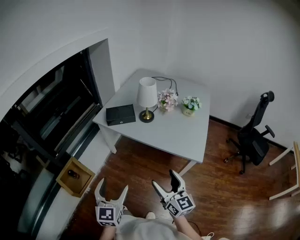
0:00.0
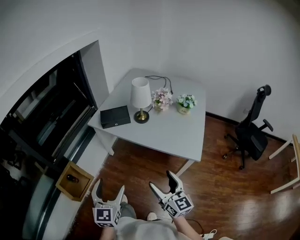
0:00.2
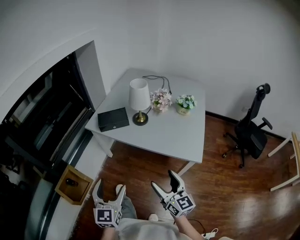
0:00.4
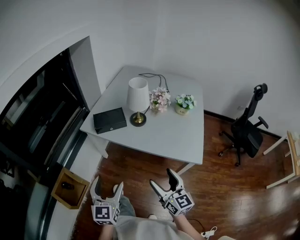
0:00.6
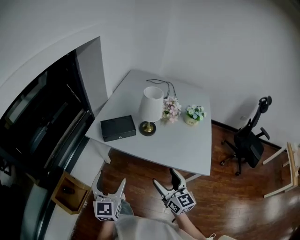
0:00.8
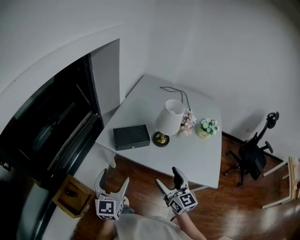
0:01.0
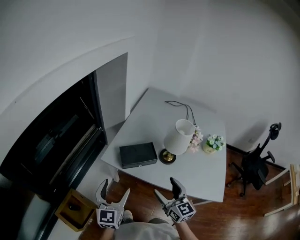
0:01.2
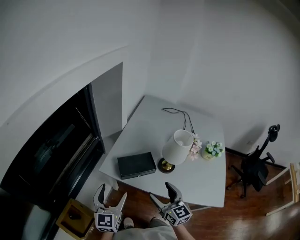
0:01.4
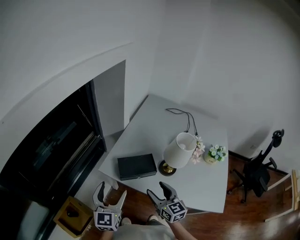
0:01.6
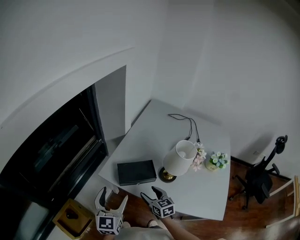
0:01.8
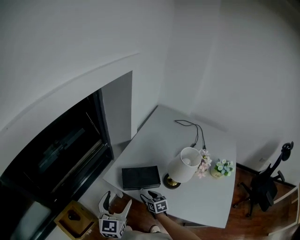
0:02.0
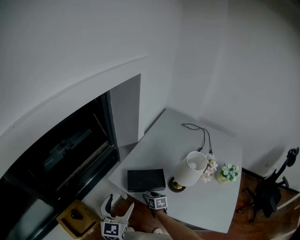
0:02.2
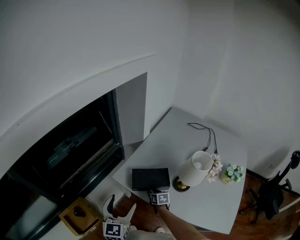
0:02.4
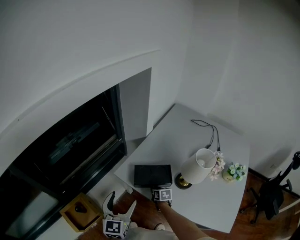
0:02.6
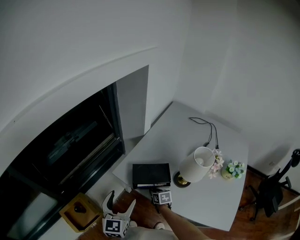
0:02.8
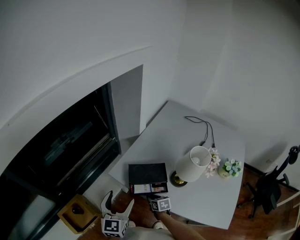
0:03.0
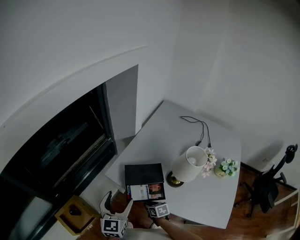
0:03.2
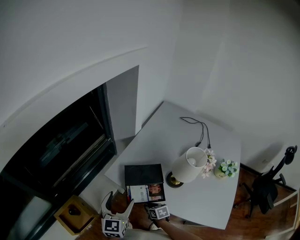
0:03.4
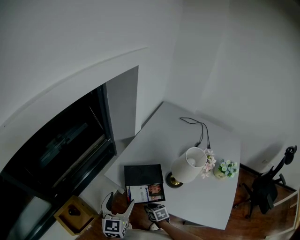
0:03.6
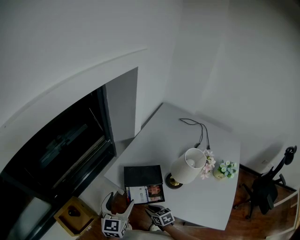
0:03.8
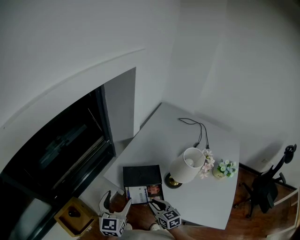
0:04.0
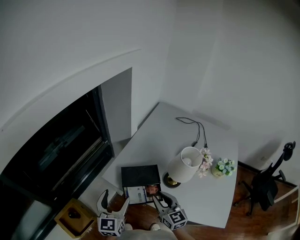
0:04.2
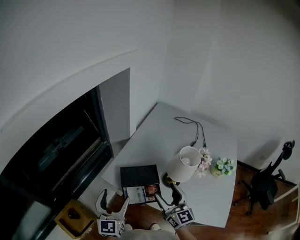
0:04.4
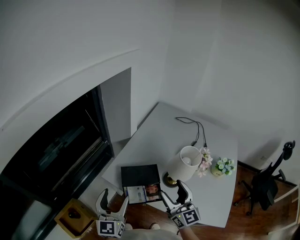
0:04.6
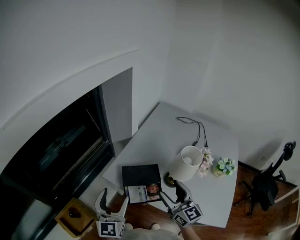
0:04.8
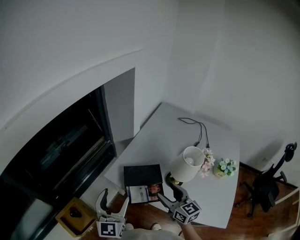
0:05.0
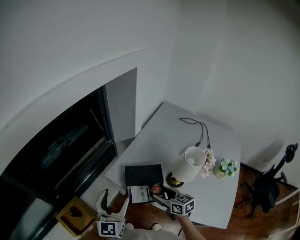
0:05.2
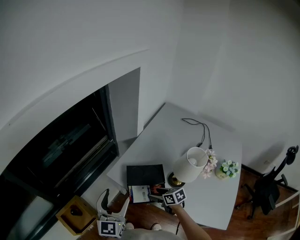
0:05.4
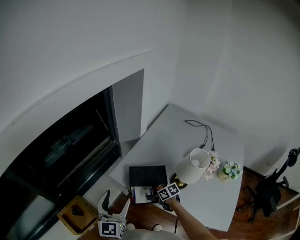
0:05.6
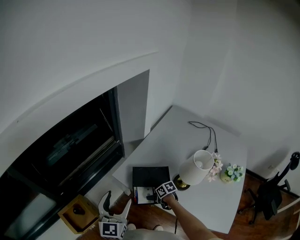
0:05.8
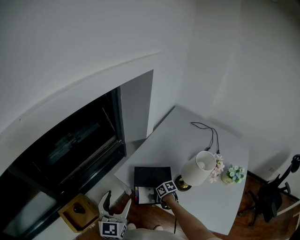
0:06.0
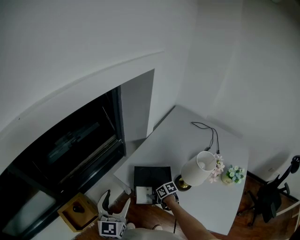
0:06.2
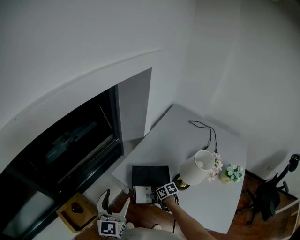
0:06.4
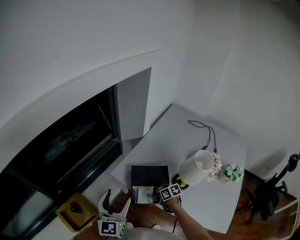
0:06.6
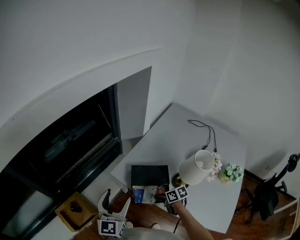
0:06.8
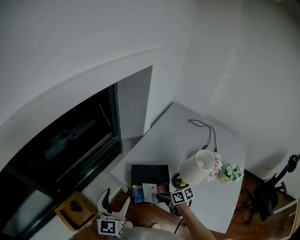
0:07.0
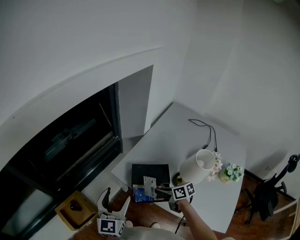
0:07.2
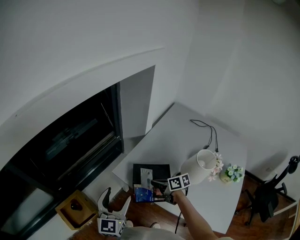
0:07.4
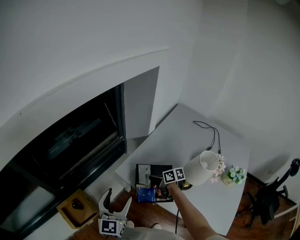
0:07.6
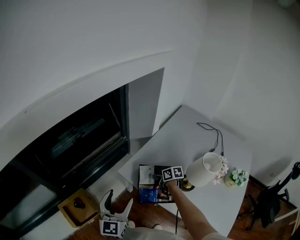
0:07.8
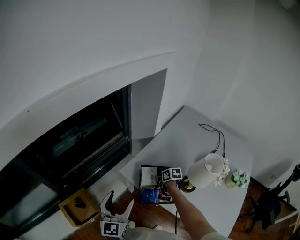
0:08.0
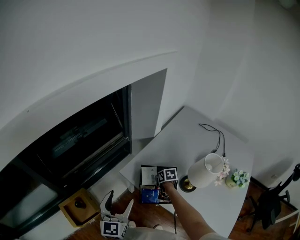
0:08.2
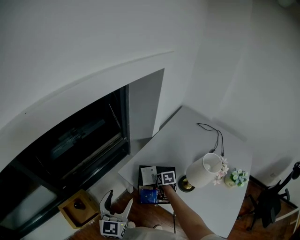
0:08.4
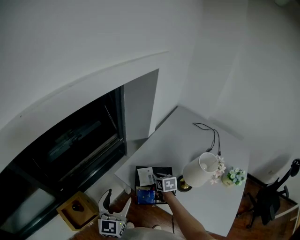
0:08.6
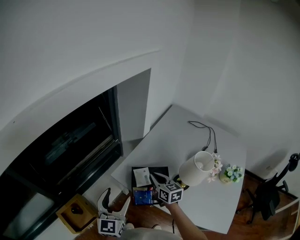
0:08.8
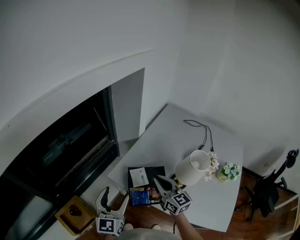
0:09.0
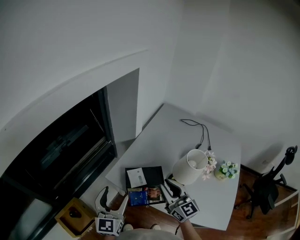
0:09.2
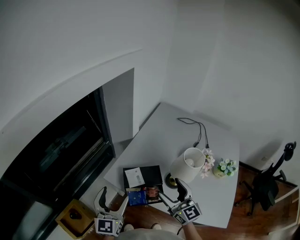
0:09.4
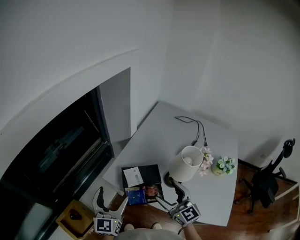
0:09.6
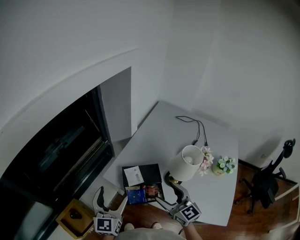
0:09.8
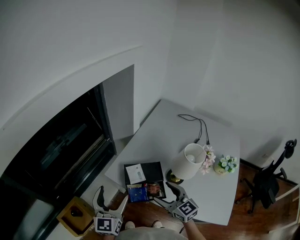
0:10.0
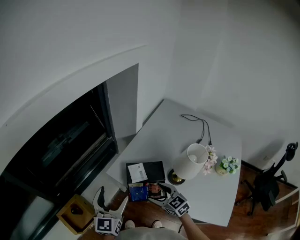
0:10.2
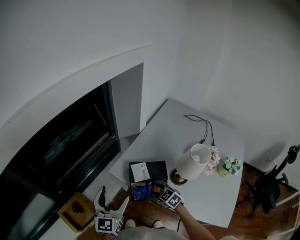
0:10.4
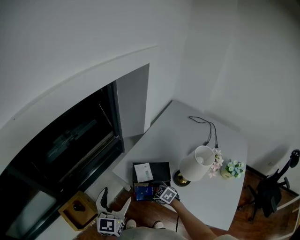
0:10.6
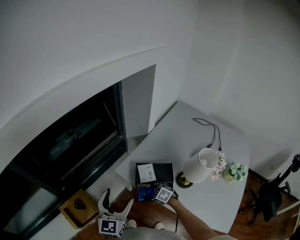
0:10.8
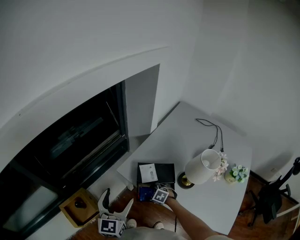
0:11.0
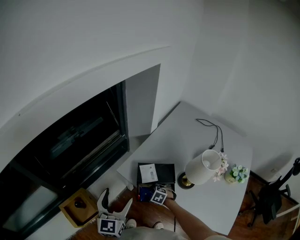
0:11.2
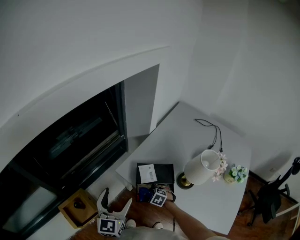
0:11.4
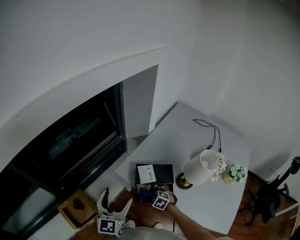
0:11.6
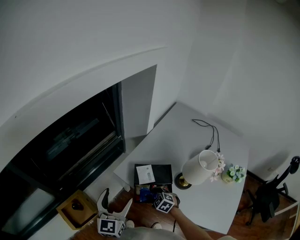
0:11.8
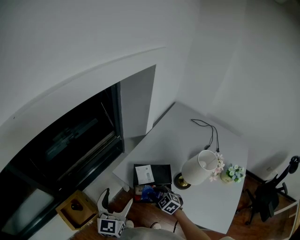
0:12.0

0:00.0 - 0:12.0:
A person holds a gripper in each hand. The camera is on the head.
0:00.0 - 0:01.6: Both grippers are carried forward, about 40 cm.
0:01.6 - 0:03.0: The right gripper goes some 25 cm downward, angles its fingers downward, by roughly 40 degrees, and closes.
0:03.0 - 0:04.4: The right gripper is displaced upward by roughly 30 cm, points its fingers about 50 degrees further upward, and opens up.
0:04.4 - 0:06.0: The right gripper goes approximately 30 cm downward, tilts its fingers some 50 degrees downward, and closes up. The left gripper moves some 5 cm.
0:06.0 - 0:07.6: The right gripper shifts approximately 15 cm upward and forward, turns by some 20 degrees, and closes.
0:07.6 - 0:09.0: The right gripper travels upward by about 15 cm, and angles its fingers upward, by some 30 degrees.
0:09.0 - 0:10.4: The right gripper moves downward, roughly 20 cm, tips its fingers downward by approximately 40 degrees, and opens.
0:10.4 - 0:12.0: The right gripper moves roughly 15 cm downward and comes back, and closes up.

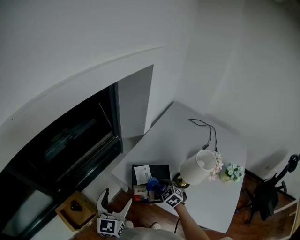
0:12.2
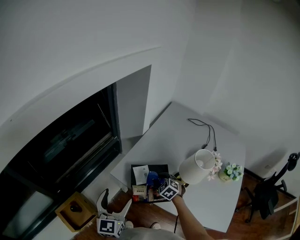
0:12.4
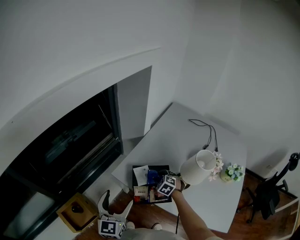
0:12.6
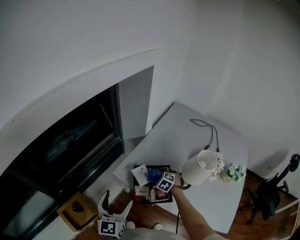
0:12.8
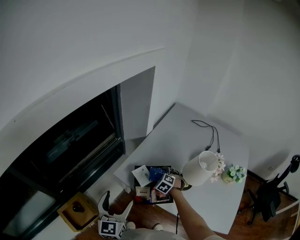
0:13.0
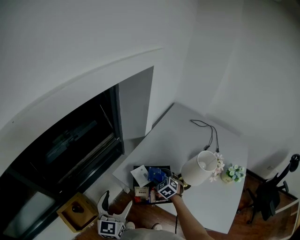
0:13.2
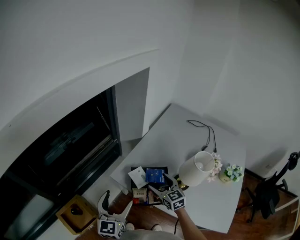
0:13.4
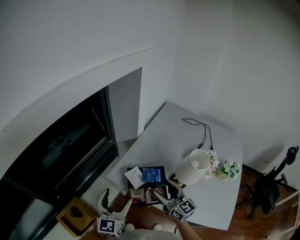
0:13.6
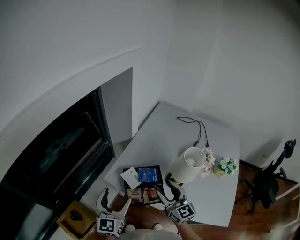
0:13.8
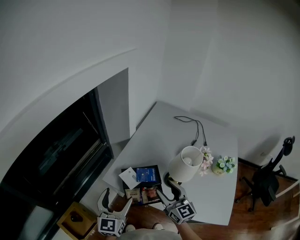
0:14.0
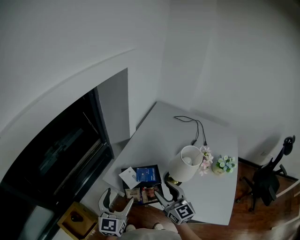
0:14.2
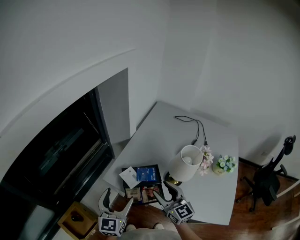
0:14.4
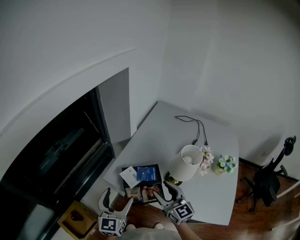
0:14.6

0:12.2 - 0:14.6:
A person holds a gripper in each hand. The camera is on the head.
0:12.2 - 0:13.4: The right gripper is displaced upward by approximately 10 cm, rotates roughly 40 degrees, and opens up.
0:13.4 - 0:14.6: The right gripper is displaced upward and backward by some 10 cm.

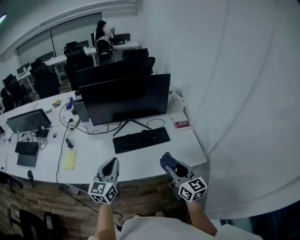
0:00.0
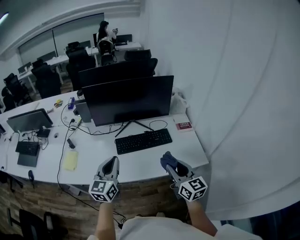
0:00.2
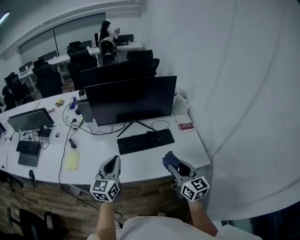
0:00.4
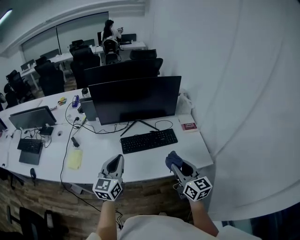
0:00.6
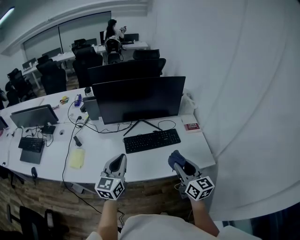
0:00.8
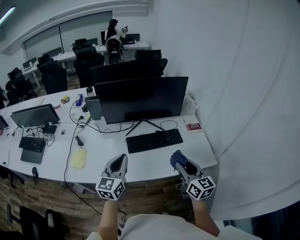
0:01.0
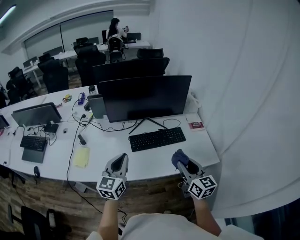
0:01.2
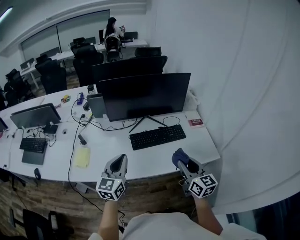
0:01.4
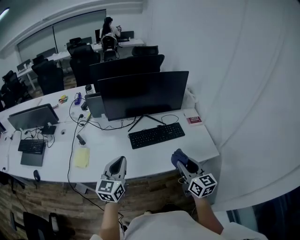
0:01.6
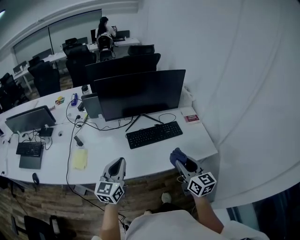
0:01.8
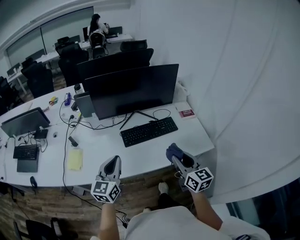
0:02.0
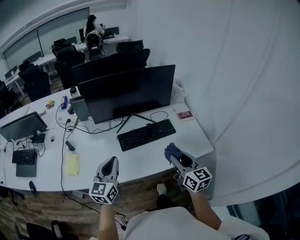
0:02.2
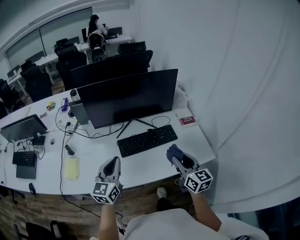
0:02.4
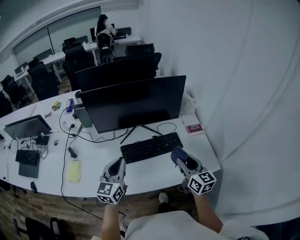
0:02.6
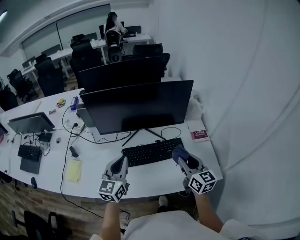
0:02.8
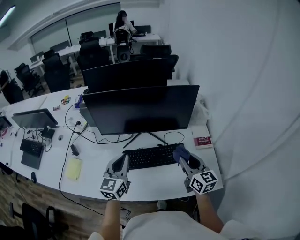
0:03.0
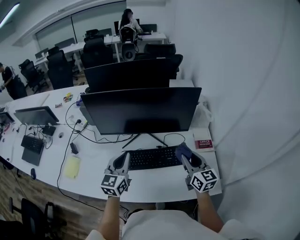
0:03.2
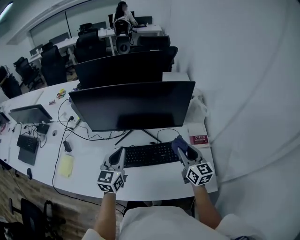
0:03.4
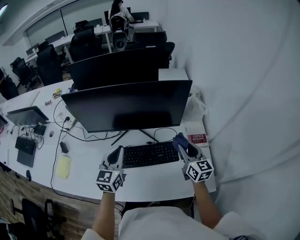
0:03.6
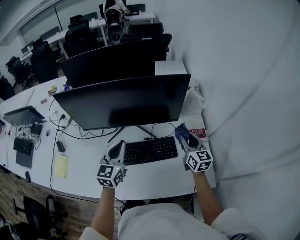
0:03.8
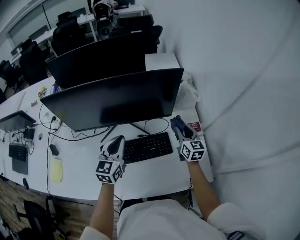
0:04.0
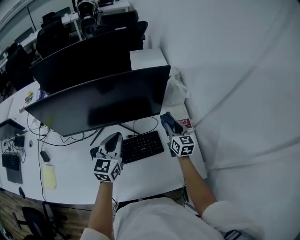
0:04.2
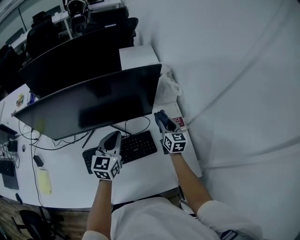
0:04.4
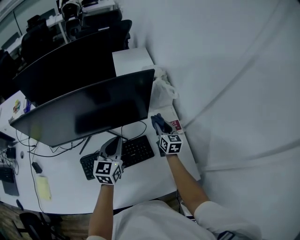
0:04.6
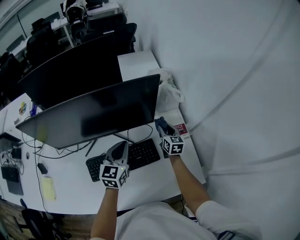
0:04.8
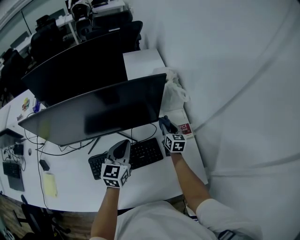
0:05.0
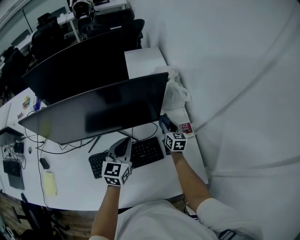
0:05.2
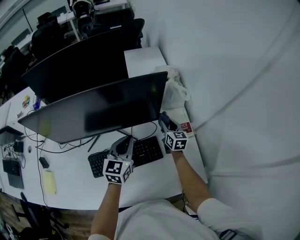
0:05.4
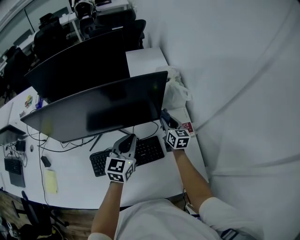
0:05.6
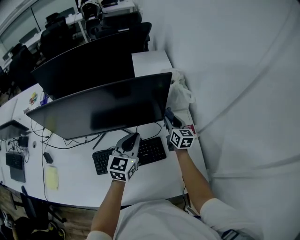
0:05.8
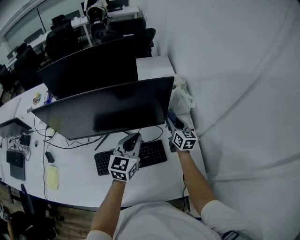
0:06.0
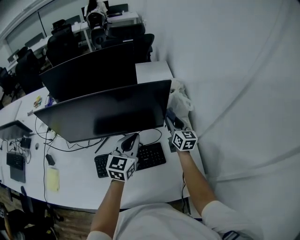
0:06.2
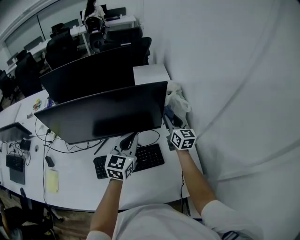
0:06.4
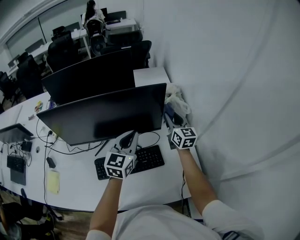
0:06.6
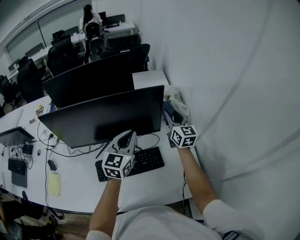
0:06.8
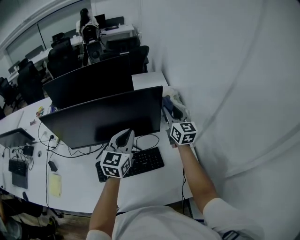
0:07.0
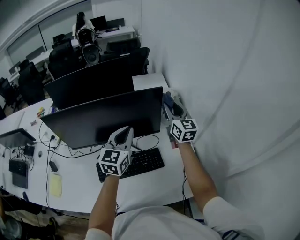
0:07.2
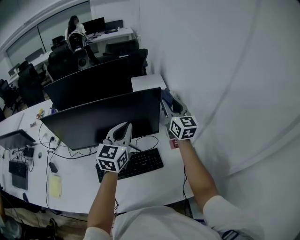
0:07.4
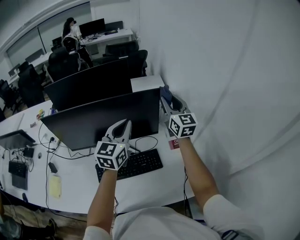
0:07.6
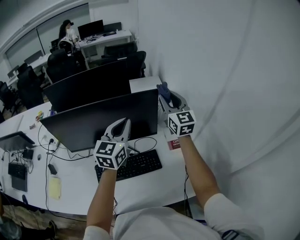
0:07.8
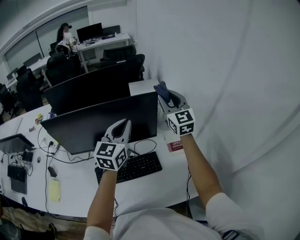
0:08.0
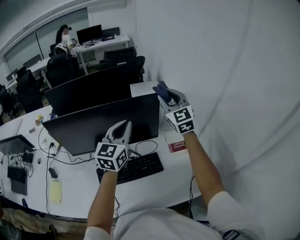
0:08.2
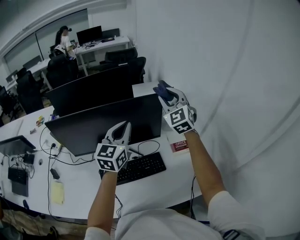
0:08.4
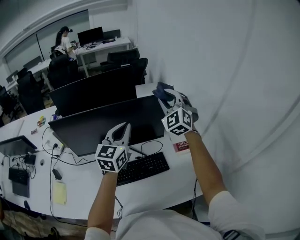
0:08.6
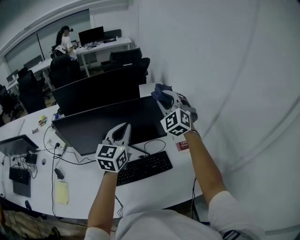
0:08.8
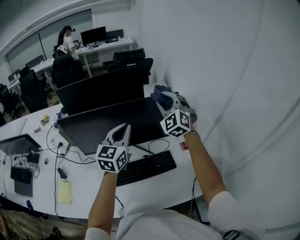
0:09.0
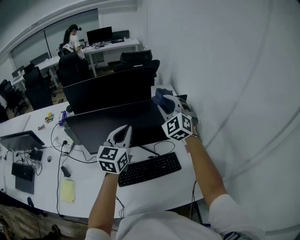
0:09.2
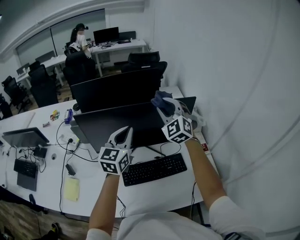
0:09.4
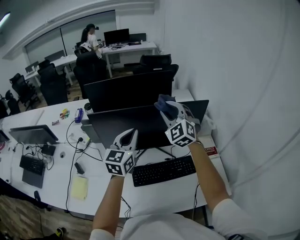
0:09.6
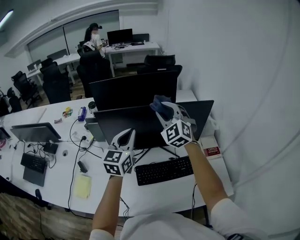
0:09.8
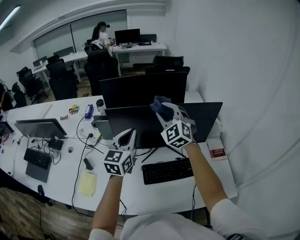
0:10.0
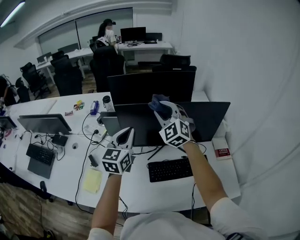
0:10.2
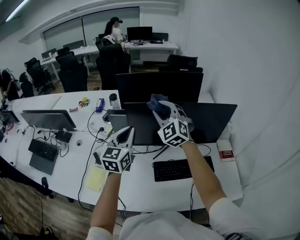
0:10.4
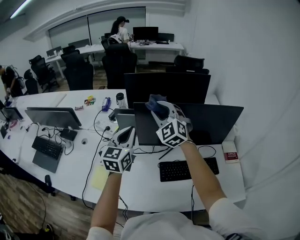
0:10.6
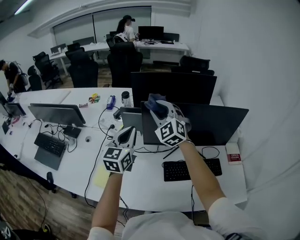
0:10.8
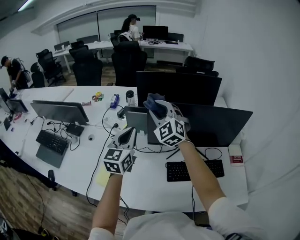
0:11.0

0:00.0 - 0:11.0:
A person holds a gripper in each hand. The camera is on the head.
0:00.0 - 0:01.6: The two grippers go roughly 10 cm to the left.
0:01.6 - 0:03.2: The grippers both shift forward and to the right by roughly 30 cm.
0:03.2 - 0:04.8: The left gripper heads to the right, forward and downward, covering approximately 25 cm, while the right gripper heads forward, downward and to the right, covering approximately 30 cm, and rotates about 30 degrees.
0:04.8 - 0:06.2: The left gripper moves upward, about 5 cm. Meanwhile the right gripper moves upward, some 10 cm.
0:06.2 - 0:07.8: The left gripper goes roughly 15 cm upward. Meanwhile the right gripper moves upward, roughly 25 cm, and changes its angle by about 30 degrees.
0:07.8 - 0:09.4: Both grippers travel together to the left, roughly 20 cm. The right gripper rolls counterclockwise, seen from behind, by approximately 40 degrees.
0:09.4 - 0:11.0: Both grippers travel together to the left, approximately 35 cm.
